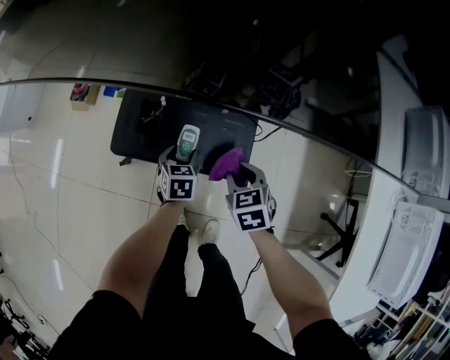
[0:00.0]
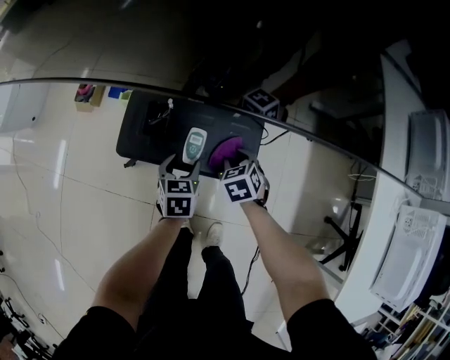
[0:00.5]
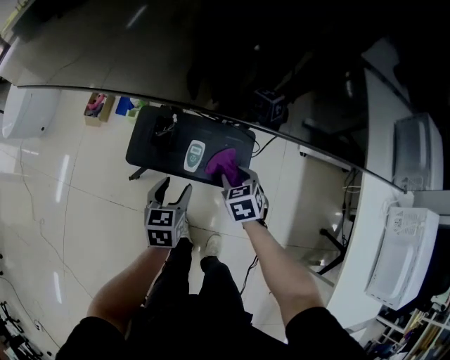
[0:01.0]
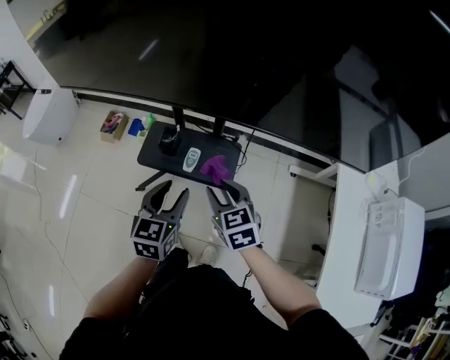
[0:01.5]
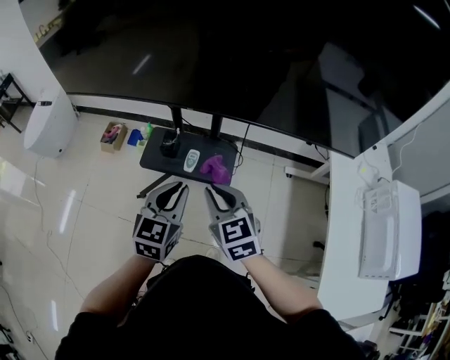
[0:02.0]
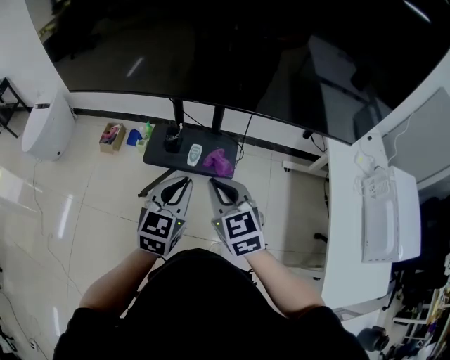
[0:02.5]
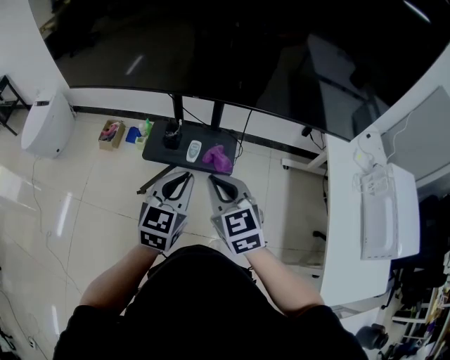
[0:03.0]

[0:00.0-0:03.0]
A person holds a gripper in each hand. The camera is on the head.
0:00.0 to 0:01.5: Both grippers travel together upward and backward, some 35 cm. The right gripper swivels roughly 20 degrees, while the left gripper rotates roughly 30 degrees.
0:01.5 to 0:03.0: Both grippers move backward and upward, some 15 cm. The right gripper closes up. The left gripper closes up.

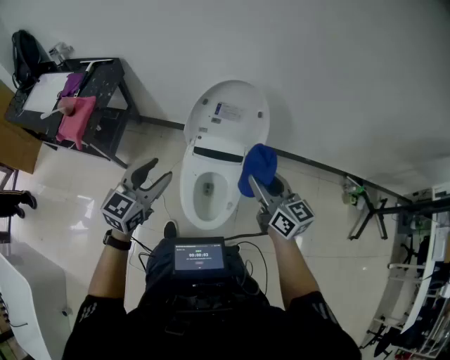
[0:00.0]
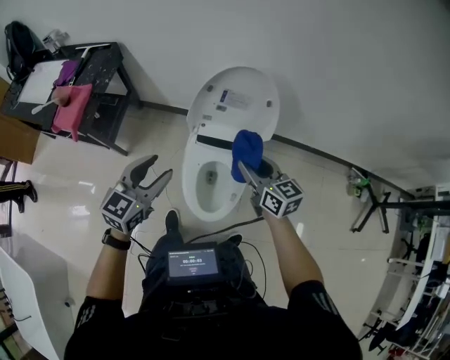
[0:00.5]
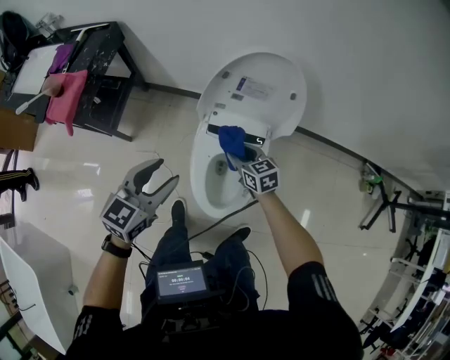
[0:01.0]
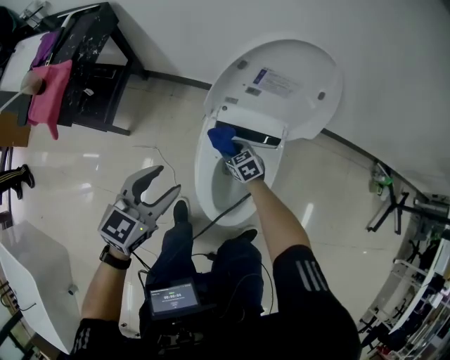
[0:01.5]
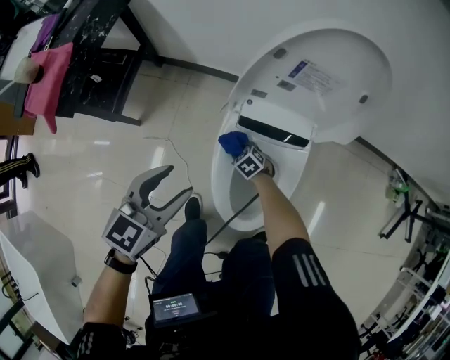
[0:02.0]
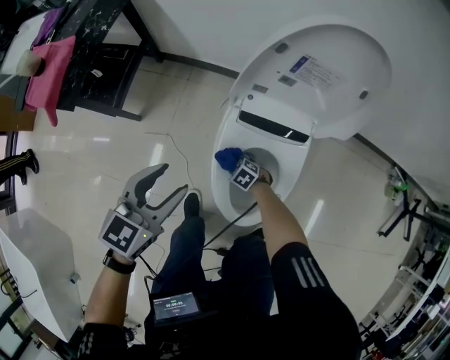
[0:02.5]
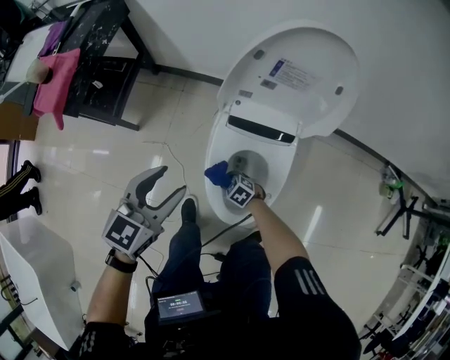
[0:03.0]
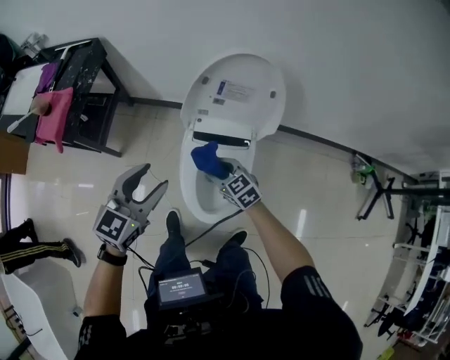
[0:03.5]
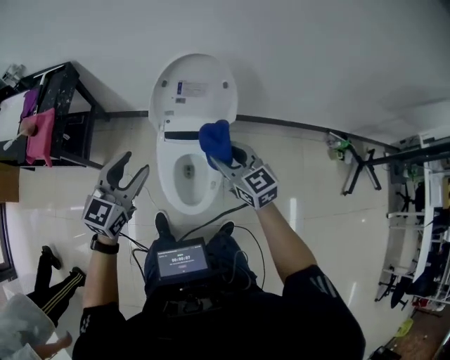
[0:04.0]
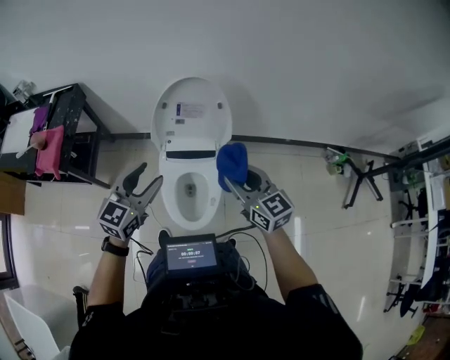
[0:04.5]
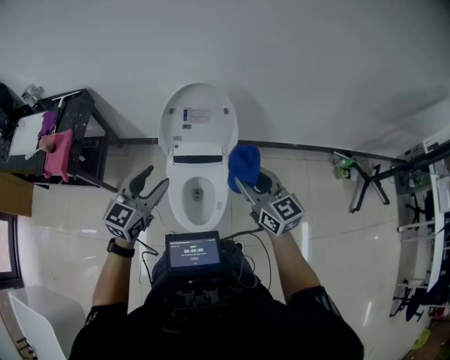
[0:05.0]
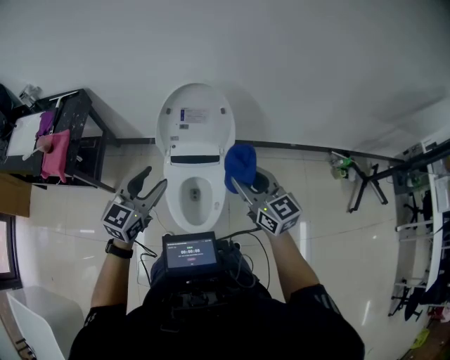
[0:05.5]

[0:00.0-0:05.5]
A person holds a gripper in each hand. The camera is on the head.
0:00.0 to 0:02.0: The left gripper heads downward, covering approximately 25 cm. Meanwhile the right gripper shifts approximately 70 cm downward, and points its fingers roughly 60 degrees further downward.
0:02.0 to 0:03.5: The left gripper heads upward, covering roughly 15 cm. The right gripper travels upward by some 35 cm, and angles its fingers upward, by approximately 30 degrees.
0:03.5 to 0:05.5: The right gripper travels upward and to the right by approximately 35 cm, and changes its angle by about 40 degrees, while the left gripper heads to the right and upward, covering roughly 10 cm.

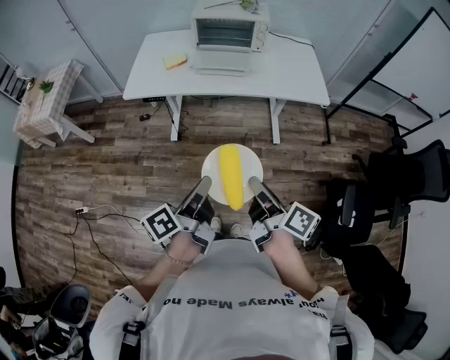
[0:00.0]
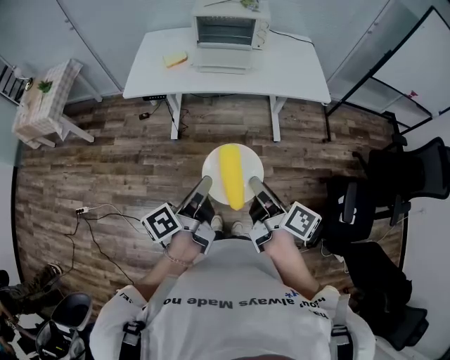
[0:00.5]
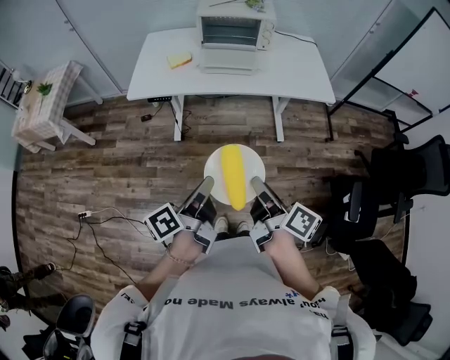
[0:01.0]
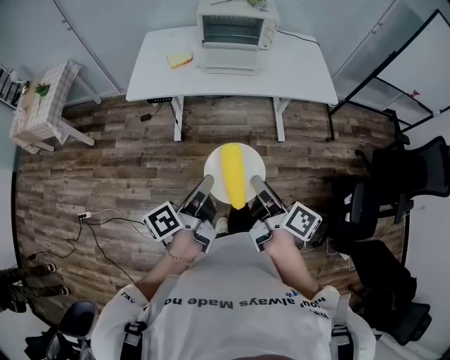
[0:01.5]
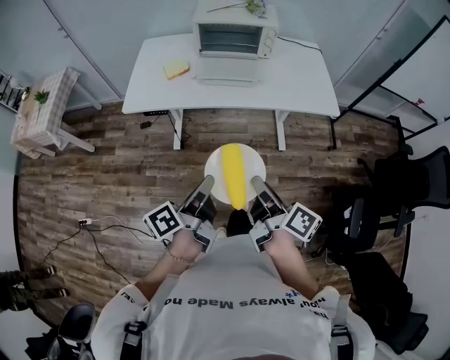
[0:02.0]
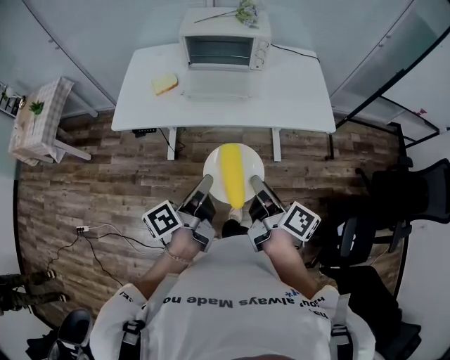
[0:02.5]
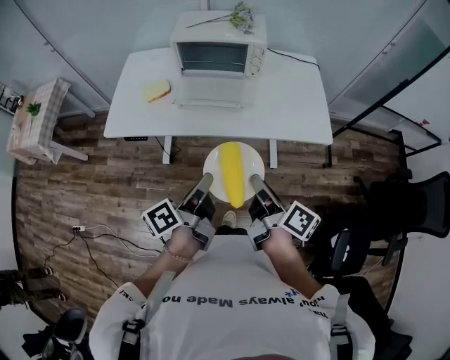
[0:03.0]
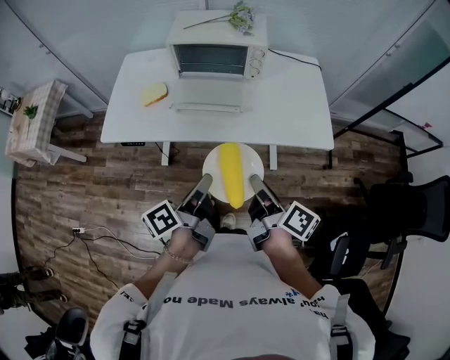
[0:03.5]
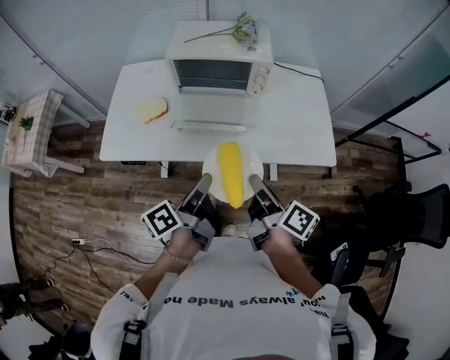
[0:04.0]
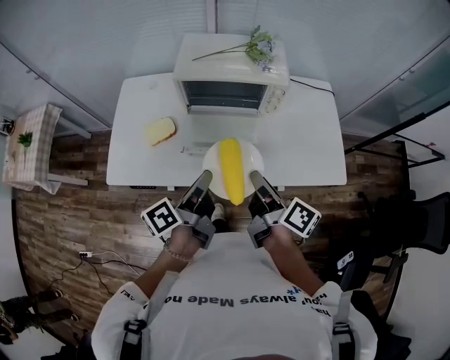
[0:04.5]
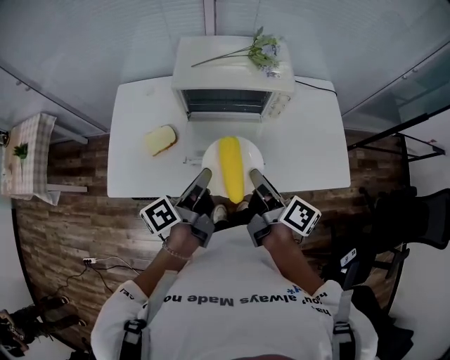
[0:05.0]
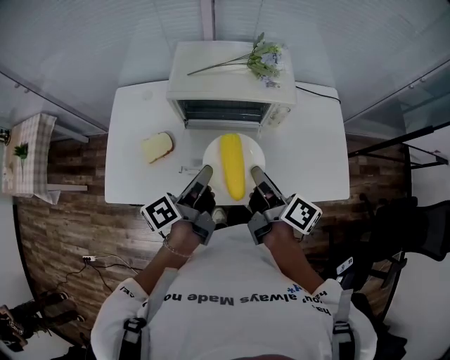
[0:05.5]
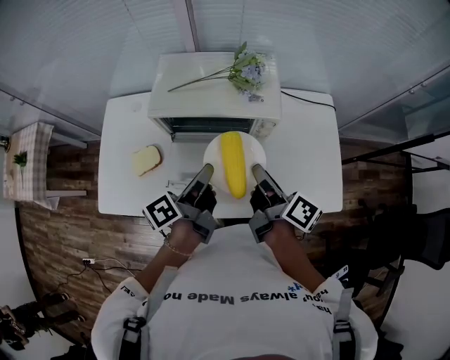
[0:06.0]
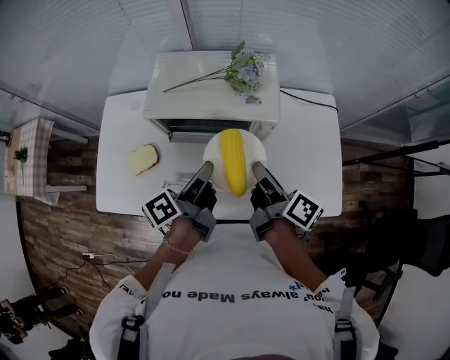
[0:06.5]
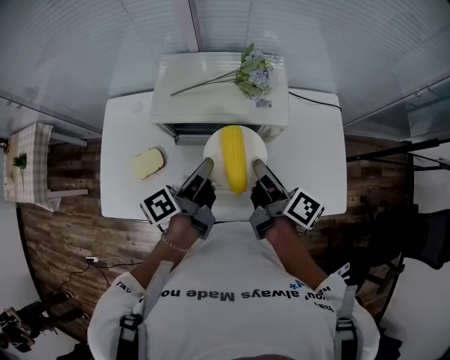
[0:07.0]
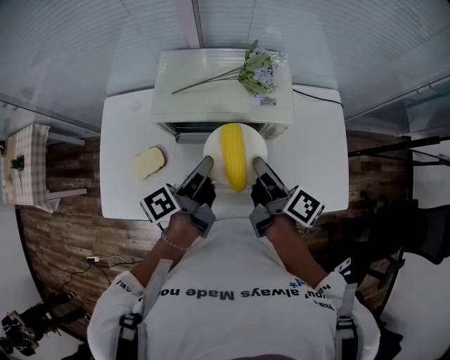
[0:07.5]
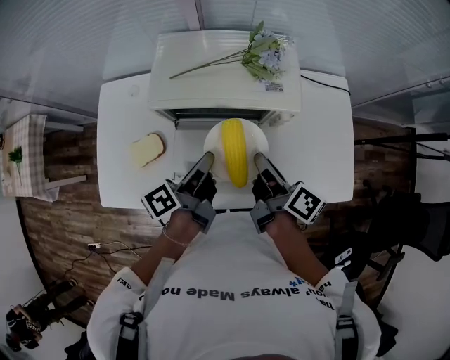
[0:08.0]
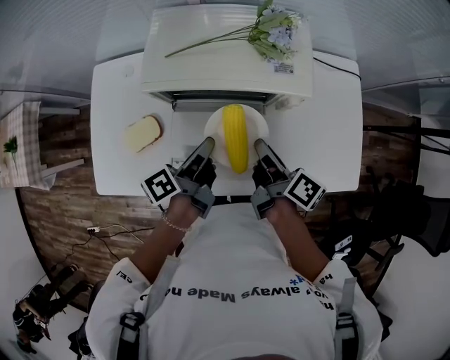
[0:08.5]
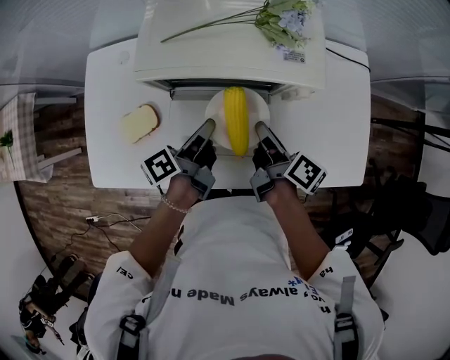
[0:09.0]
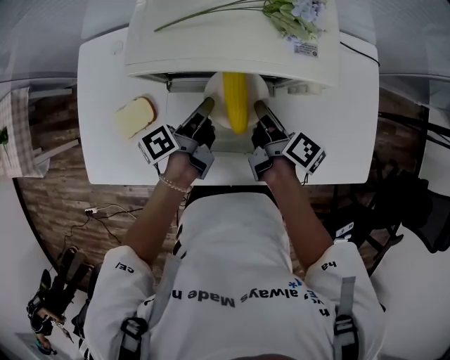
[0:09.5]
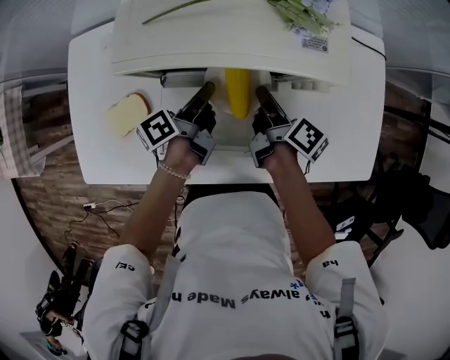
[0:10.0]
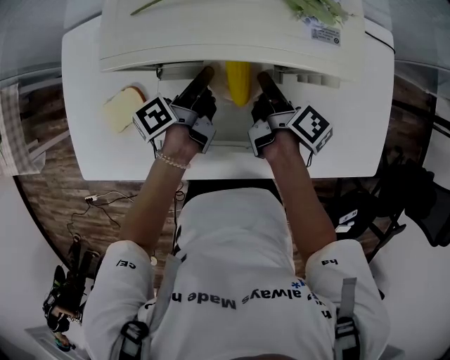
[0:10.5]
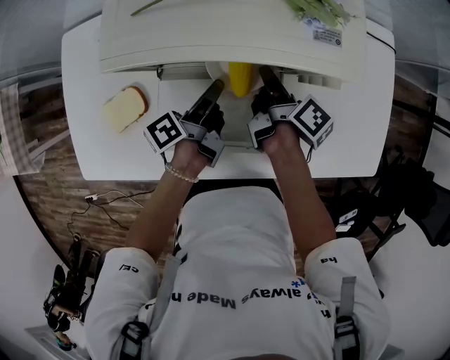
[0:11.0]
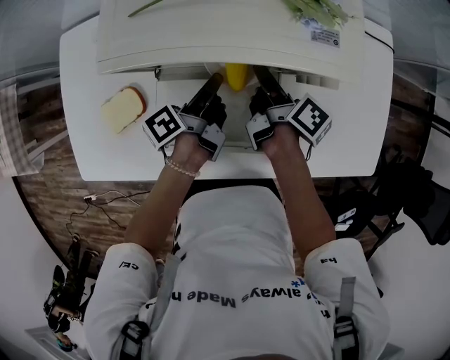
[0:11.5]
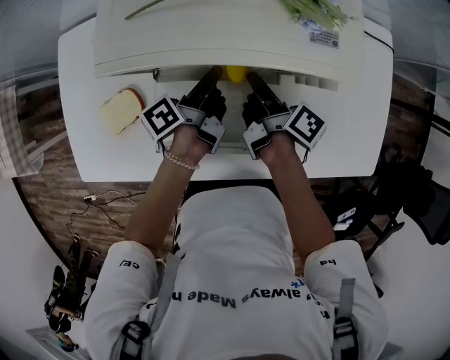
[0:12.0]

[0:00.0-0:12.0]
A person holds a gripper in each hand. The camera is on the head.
0:00.0 to 0:02.0: The right gripper moves some 10 cm.
0:02.0 to 0:04.0: The right gripper moves some 30 cm.
0:04.0 to 0:06.0: The right gripper ends up about 30 cm from where it was.
0:06.0 to 0:08.0: The right gripper moves some 5 cm.
0:08.0 to 0:10.0: The right gripper is displaced downward by about 20 cm.

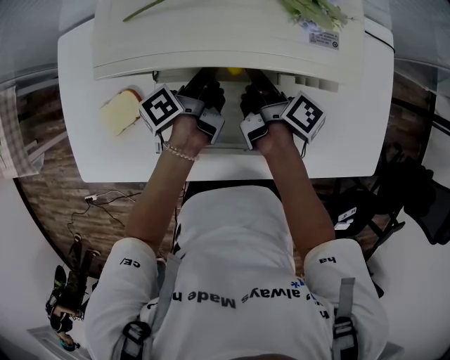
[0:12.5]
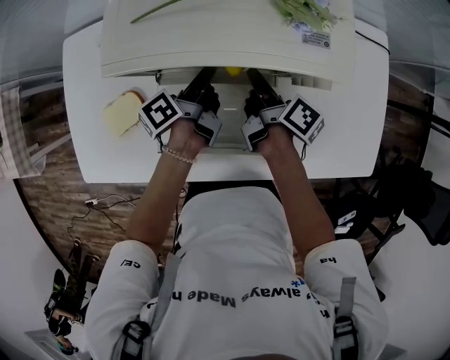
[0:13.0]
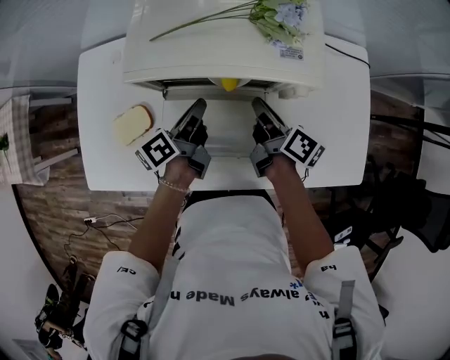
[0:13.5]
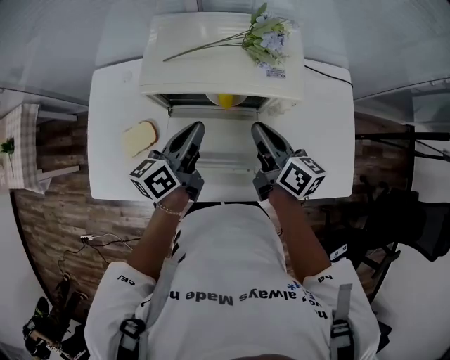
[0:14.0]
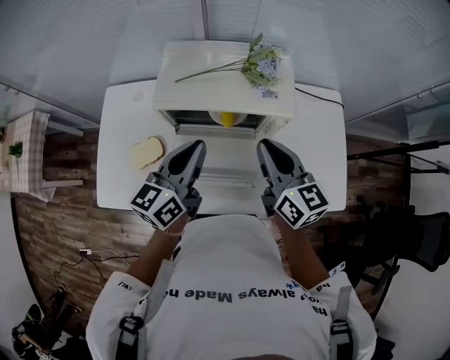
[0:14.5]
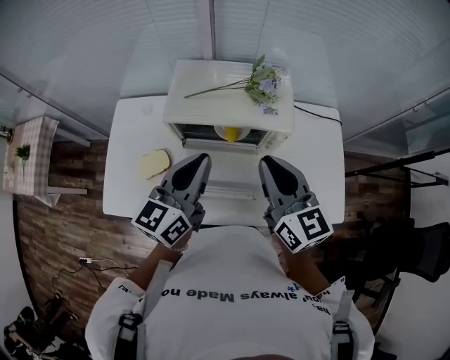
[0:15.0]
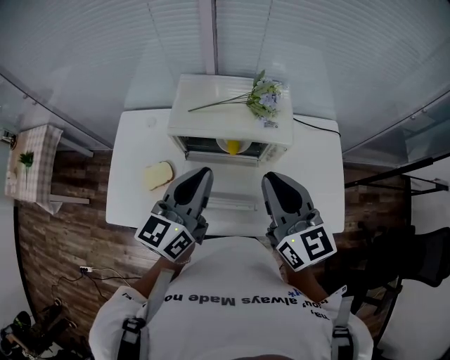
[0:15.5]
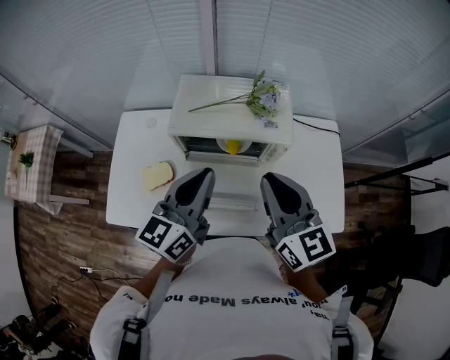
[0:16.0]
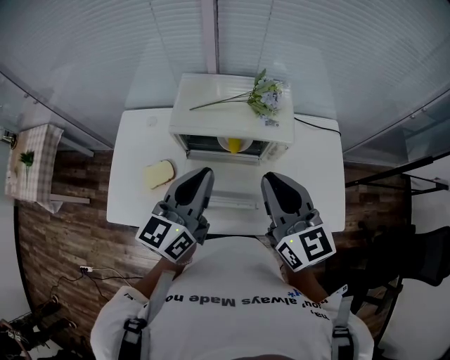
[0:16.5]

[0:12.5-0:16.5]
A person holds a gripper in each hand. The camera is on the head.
0:12.5 to 0:14.5: The right gripper shifts roughly 25 cm upward, and rolls counterclockwise, seen from behind, by some 70 degrees.
0:14.5 to 0:16.5: The right gripper is displaced upward by roughly 10 cm.

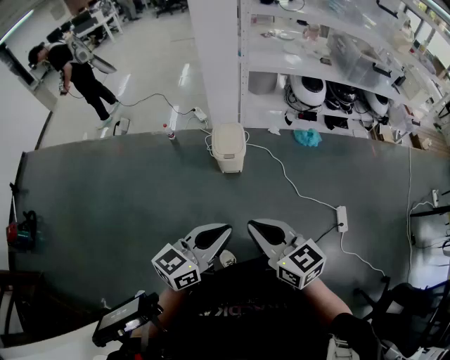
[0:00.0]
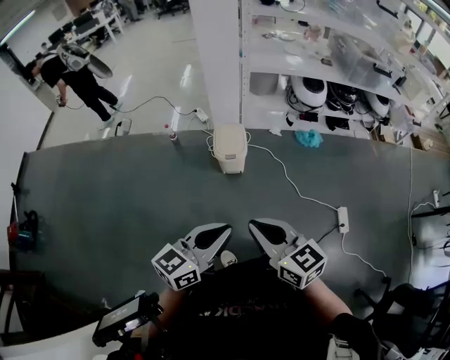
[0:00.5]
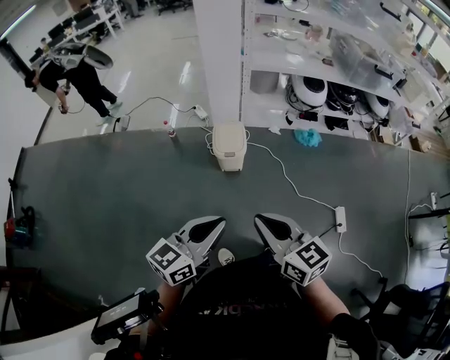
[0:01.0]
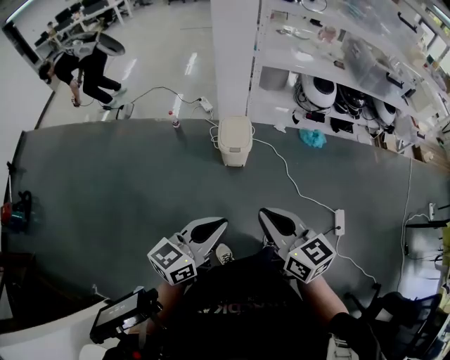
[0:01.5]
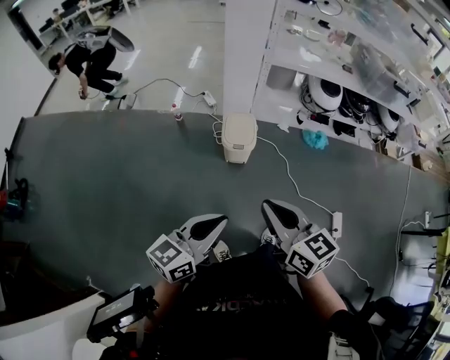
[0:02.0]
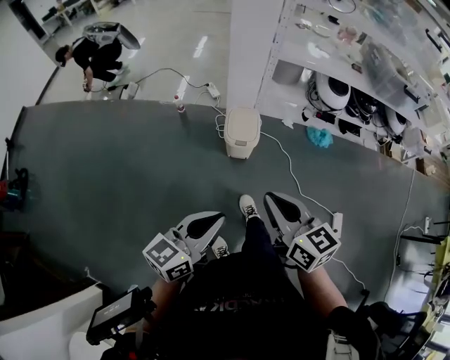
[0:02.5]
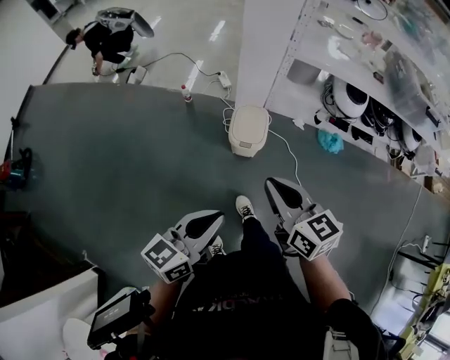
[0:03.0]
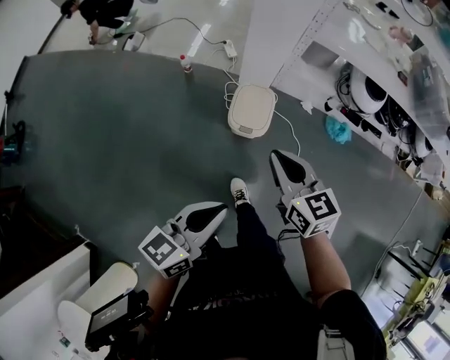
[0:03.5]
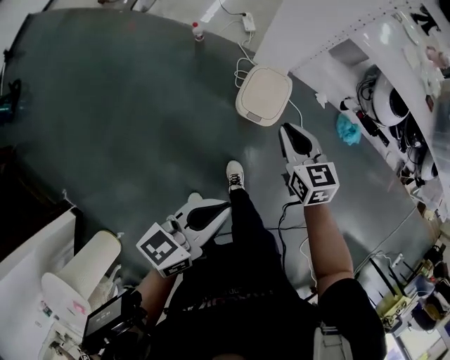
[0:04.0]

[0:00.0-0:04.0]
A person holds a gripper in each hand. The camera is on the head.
0:00.0 to 0:02.0: The left gripper moves to the left, approximately 5 cm, while the right gripper heads forward, covering some 5 cm.
0:02.0 to 0:04.0: The left gripper moves forward and downward, some 25 cm, and turns by some 20 degrees. The right gripper shifts about 50 cm forward and downward, and turns by about 20 degrees.
